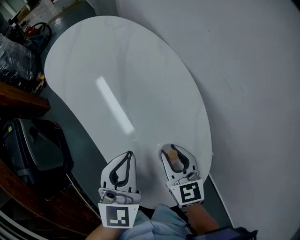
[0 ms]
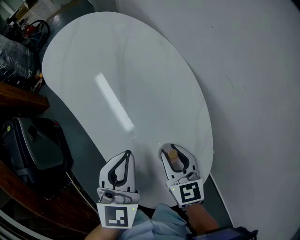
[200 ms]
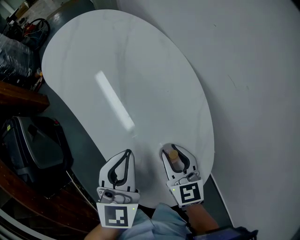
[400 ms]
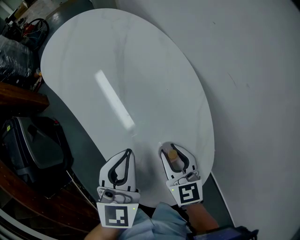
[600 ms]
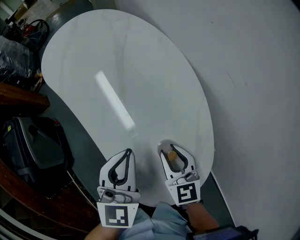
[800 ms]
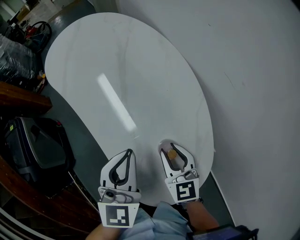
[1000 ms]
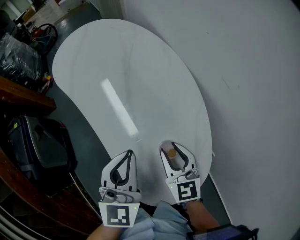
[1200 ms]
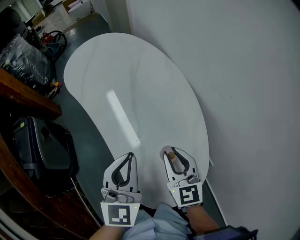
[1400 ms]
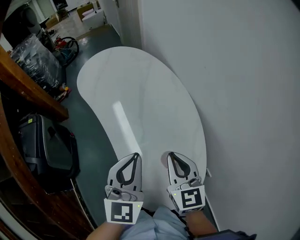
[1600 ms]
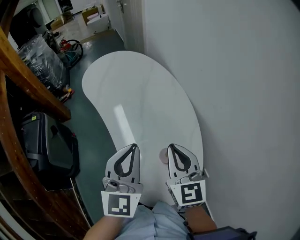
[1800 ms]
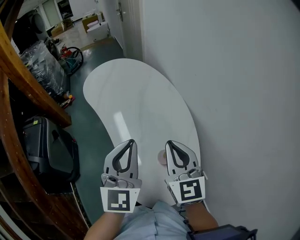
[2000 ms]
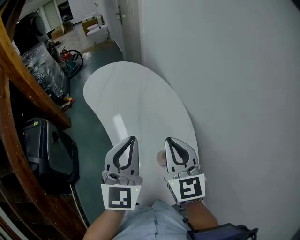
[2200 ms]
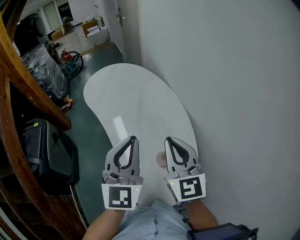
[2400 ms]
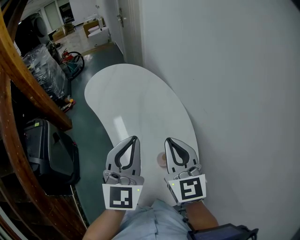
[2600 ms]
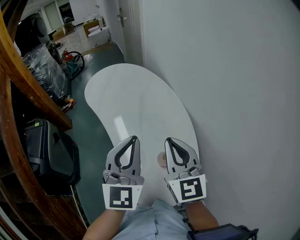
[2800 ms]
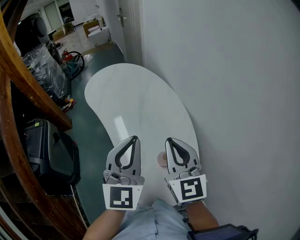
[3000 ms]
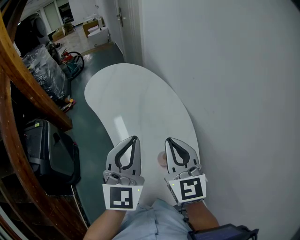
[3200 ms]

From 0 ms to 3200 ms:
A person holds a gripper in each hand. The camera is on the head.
From 0 ms to 1600 ms: The grippers both shift upward by some 10 cm. The right gripper closes.
From 1600 ms to 3200 ms: The two grippers go approximately 10 cm upward.

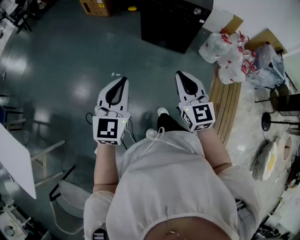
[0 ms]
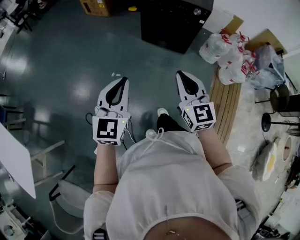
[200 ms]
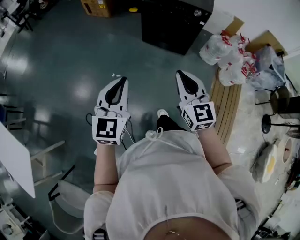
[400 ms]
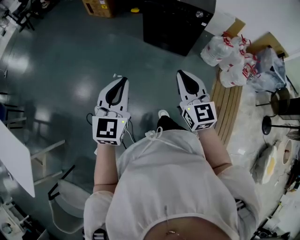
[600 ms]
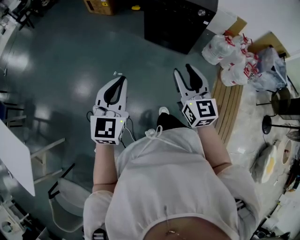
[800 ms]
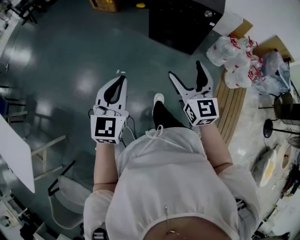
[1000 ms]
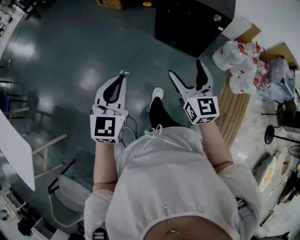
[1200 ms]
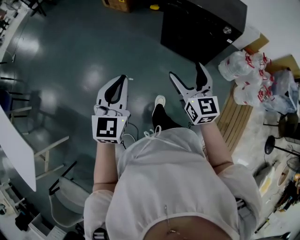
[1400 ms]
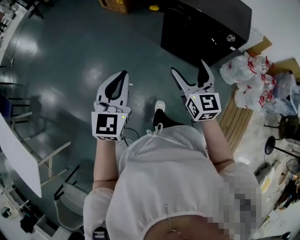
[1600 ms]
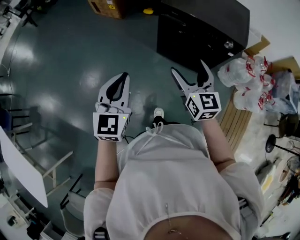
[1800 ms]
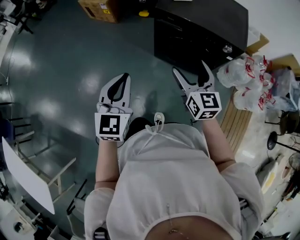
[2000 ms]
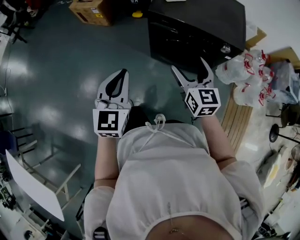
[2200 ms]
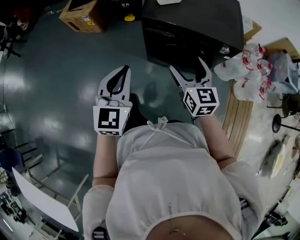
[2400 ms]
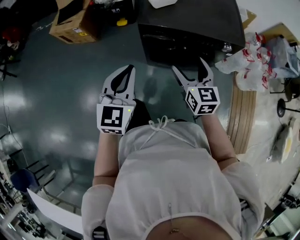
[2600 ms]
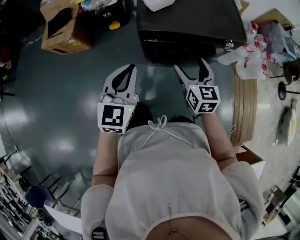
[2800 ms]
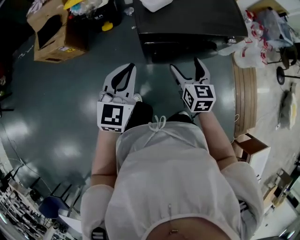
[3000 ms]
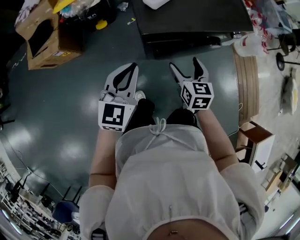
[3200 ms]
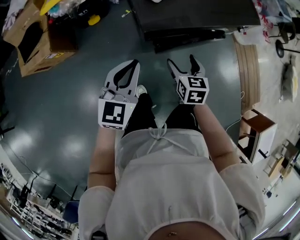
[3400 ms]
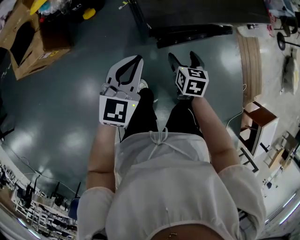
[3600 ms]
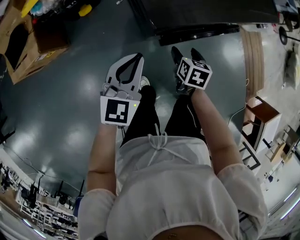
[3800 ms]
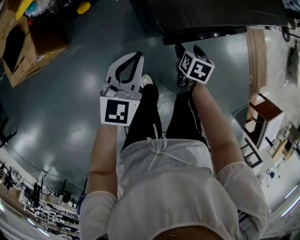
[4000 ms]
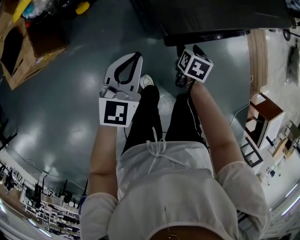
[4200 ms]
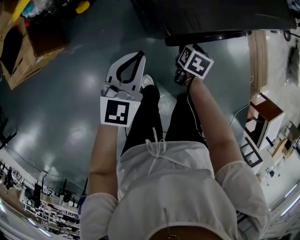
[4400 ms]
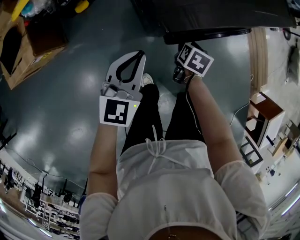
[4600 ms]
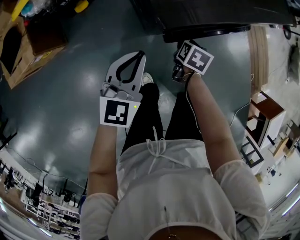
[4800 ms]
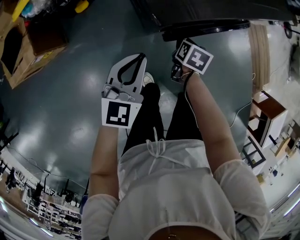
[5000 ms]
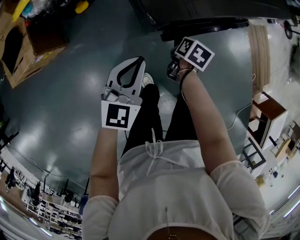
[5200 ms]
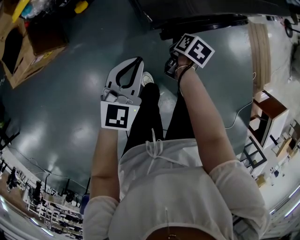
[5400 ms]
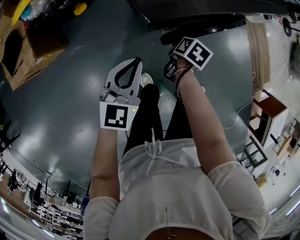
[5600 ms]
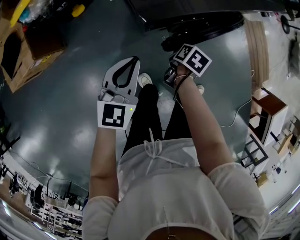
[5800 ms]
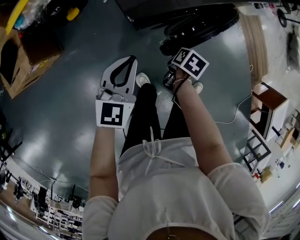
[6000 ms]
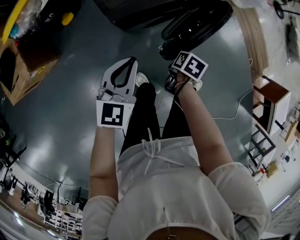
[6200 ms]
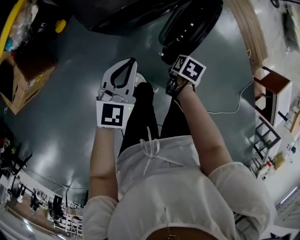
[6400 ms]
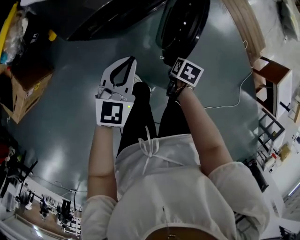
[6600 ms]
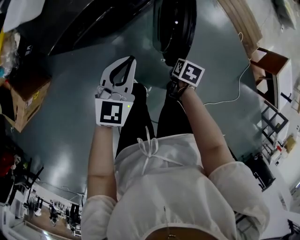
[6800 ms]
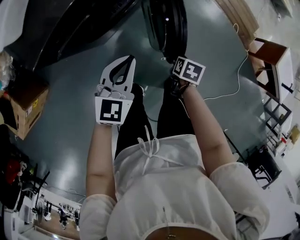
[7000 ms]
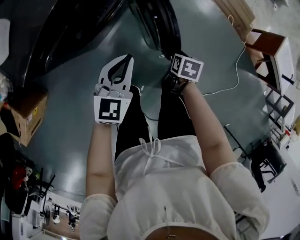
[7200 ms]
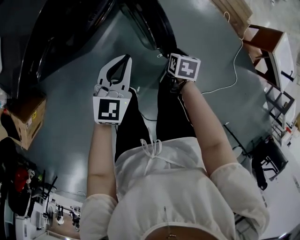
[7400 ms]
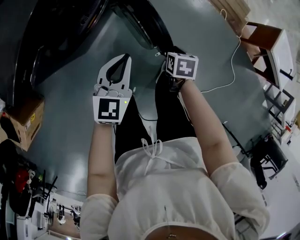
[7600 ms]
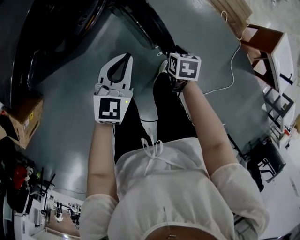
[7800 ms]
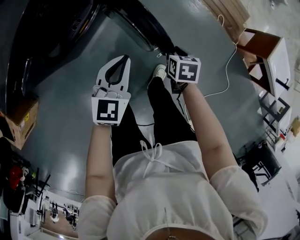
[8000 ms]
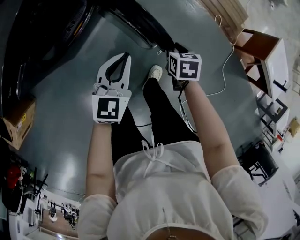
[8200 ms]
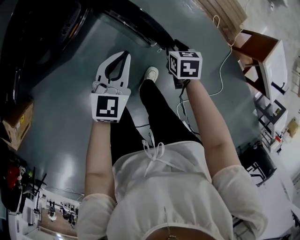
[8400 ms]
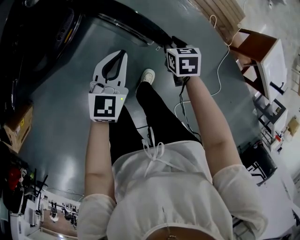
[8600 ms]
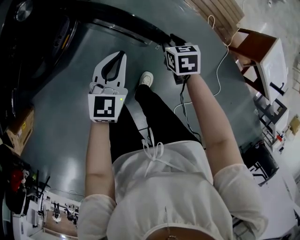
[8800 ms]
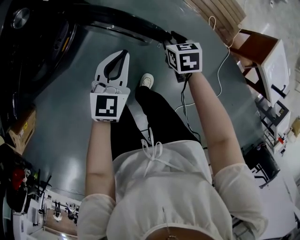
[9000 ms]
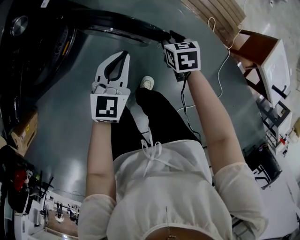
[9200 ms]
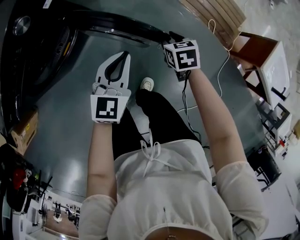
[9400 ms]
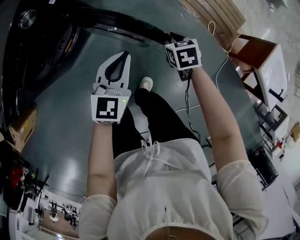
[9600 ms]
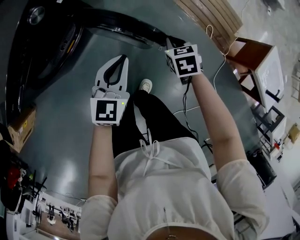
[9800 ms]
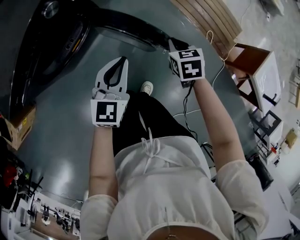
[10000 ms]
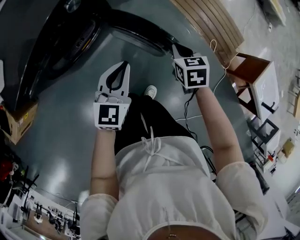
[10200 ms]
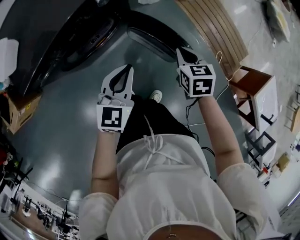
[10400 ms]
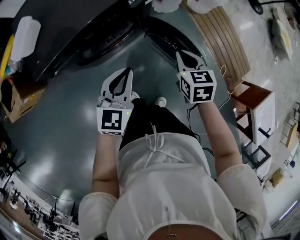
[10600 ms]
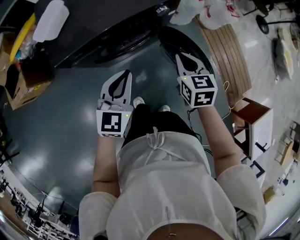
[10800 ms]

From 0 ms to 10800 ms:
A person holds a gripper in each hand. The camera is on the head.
From 0 ms to 1600 ms: Both grippers move forward, approximately 30 cm. The right gripper opens up.
From 1600 ms to 3000 ms: The left gripper ends up approximately 50 cm from where it was, and changes its angle by roughly 40 degrees; the right gripper moves about 40 cm, and changes its angle by some 40 degrees.
From 3000 ms to 4600 ms: The grippers both shift downward by roughly 30 cm. The right gripper tips its fingers downward by some 40 degrees, and closes up; the left gripper turns by roughly 20 degrees.
From 4600 ms to 6200 ms: The right gripper goes about 15 cm to the right and backward, and rotates roughly 20 degrees. The left gripper heads to the right, covering roughly 10 cm.
From 6200 ms to 7800 ms: The two grippers travel together, some 40 cm. The left gripper rotates some 20 degrees.
From 7800 ms to 9200 ms: The left gripper goes some 25 cm to the right and forward. The right gripper heads forward and to the right, covering roughly 25 cm.
From 9200 ms to 10800 ms: Both grippers move to the left and upward, roughly 40 cm. The right gripper swivels roughly 30 degrees; the left gripper rotates about 30 degrees.

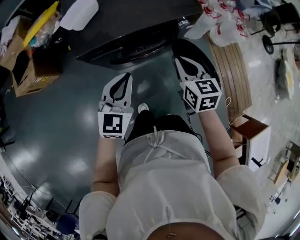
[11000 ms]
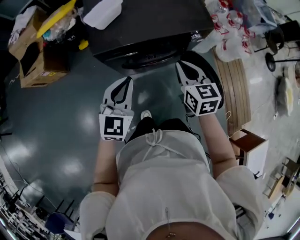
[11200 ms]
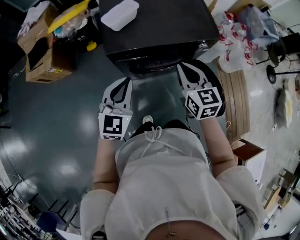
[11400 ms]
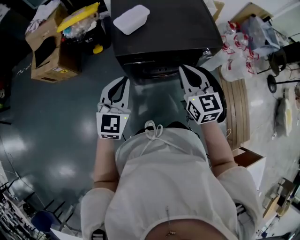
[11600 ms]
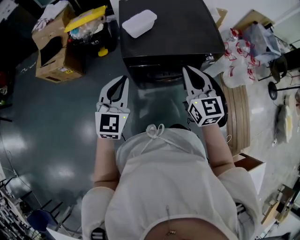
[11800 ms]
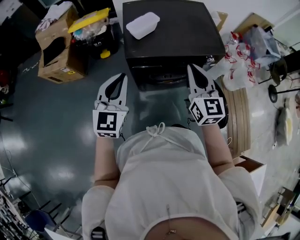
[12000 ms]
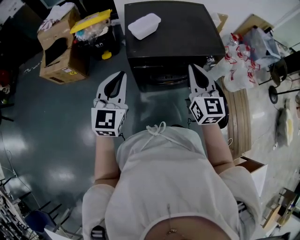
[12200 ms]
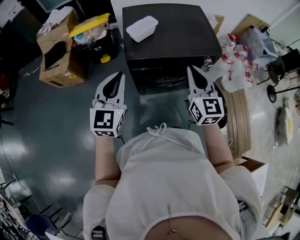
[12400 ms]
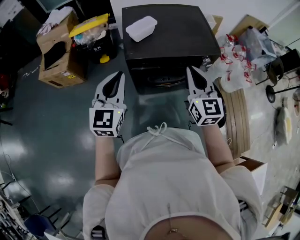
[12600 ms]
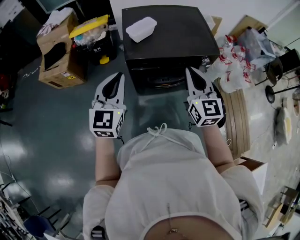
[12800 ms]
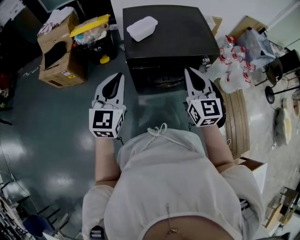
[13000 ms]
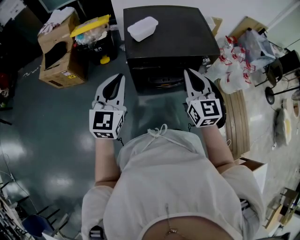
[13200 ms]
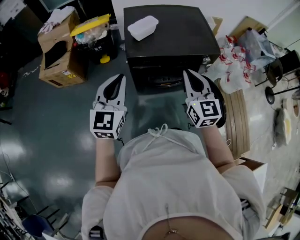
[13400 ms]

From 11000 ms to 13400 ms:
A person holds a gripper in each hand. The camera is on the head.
From 11000 ms to 12200 ms: The right gripper is displaced upward and to the left by roughly 25 cm, and swivels about 30 degrees; the left gripper goes approximately 25 cm to the left and upward.
From 12200 ms to 13400 ms: The grippers move only a little.

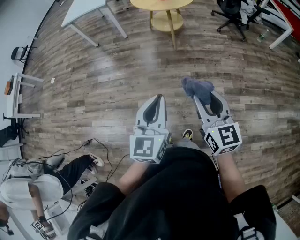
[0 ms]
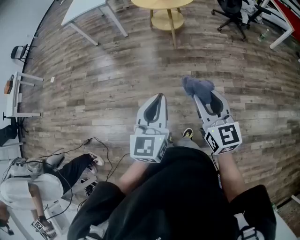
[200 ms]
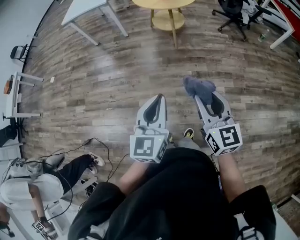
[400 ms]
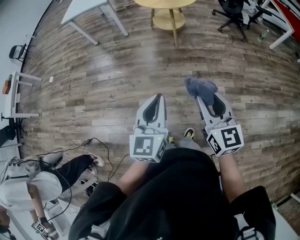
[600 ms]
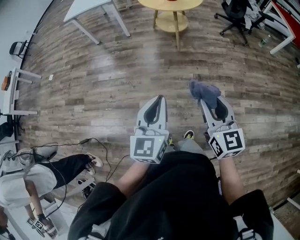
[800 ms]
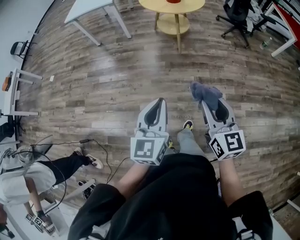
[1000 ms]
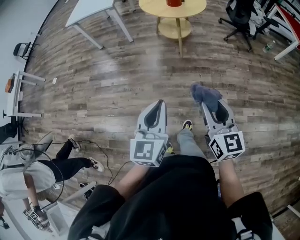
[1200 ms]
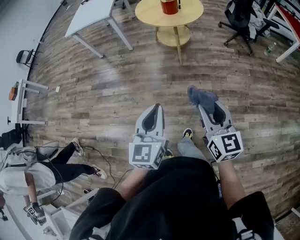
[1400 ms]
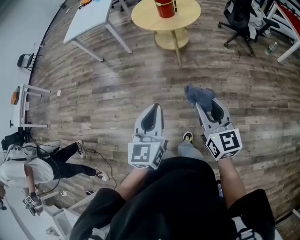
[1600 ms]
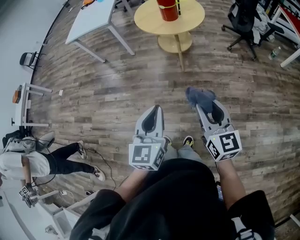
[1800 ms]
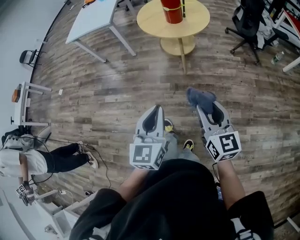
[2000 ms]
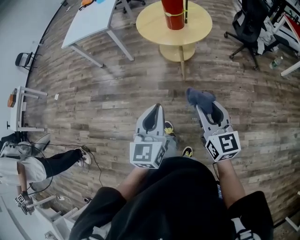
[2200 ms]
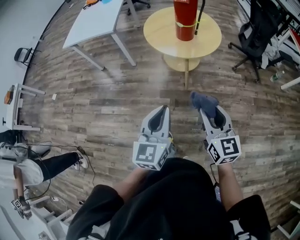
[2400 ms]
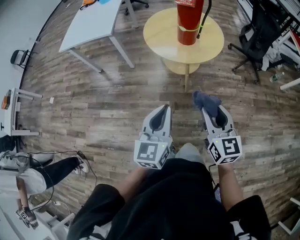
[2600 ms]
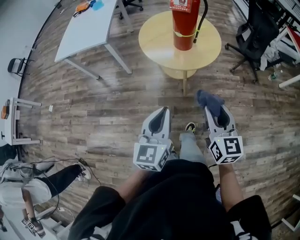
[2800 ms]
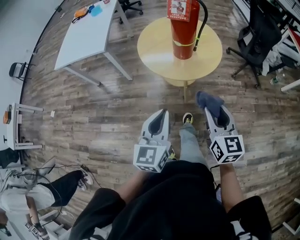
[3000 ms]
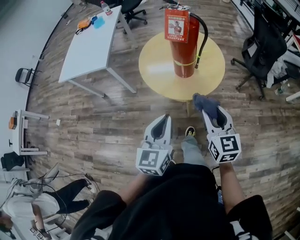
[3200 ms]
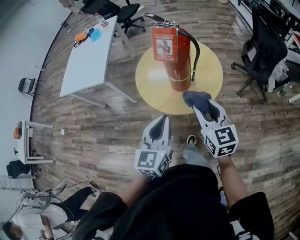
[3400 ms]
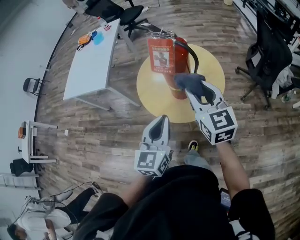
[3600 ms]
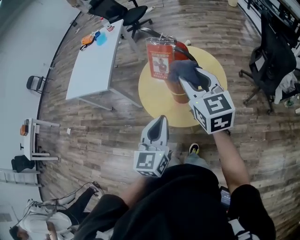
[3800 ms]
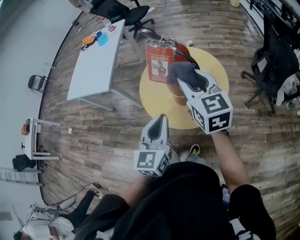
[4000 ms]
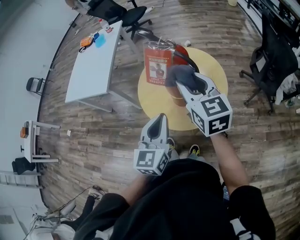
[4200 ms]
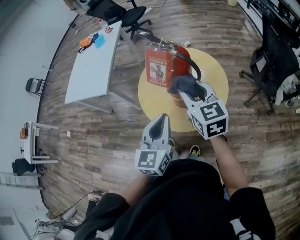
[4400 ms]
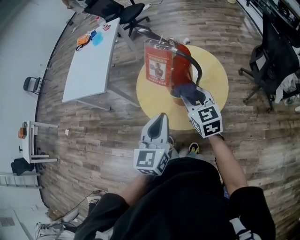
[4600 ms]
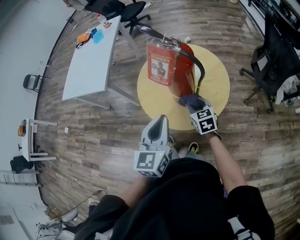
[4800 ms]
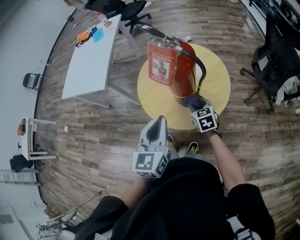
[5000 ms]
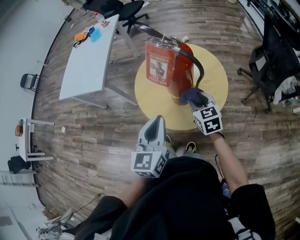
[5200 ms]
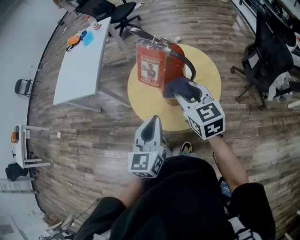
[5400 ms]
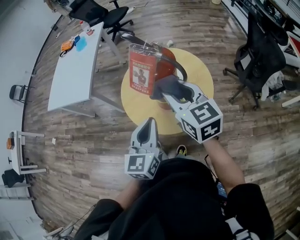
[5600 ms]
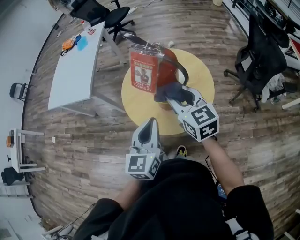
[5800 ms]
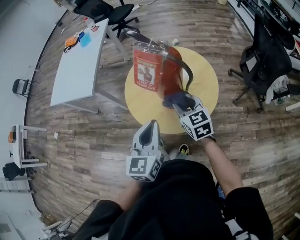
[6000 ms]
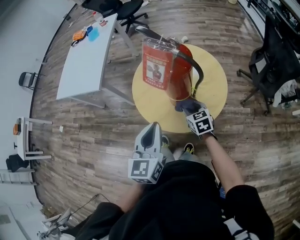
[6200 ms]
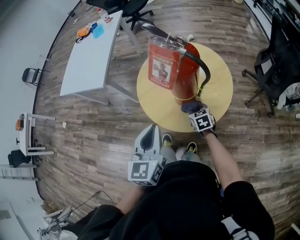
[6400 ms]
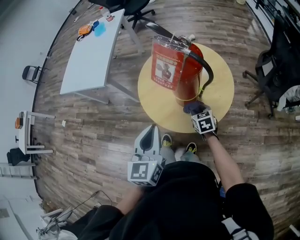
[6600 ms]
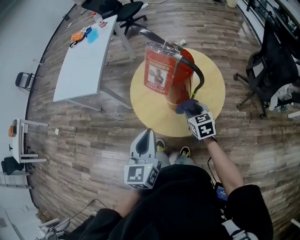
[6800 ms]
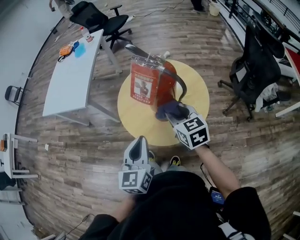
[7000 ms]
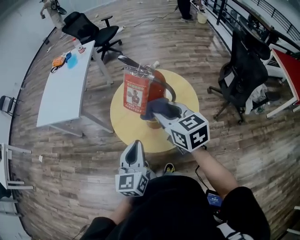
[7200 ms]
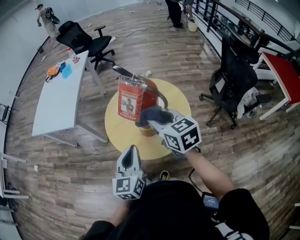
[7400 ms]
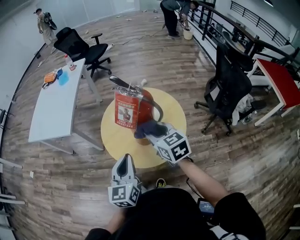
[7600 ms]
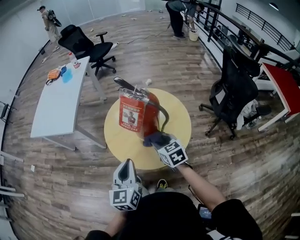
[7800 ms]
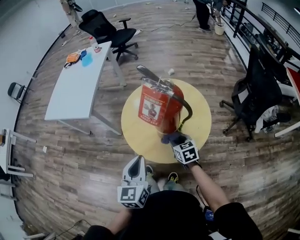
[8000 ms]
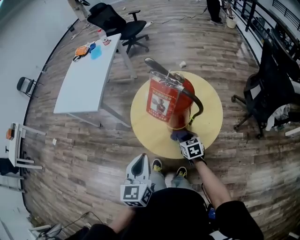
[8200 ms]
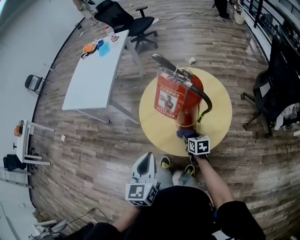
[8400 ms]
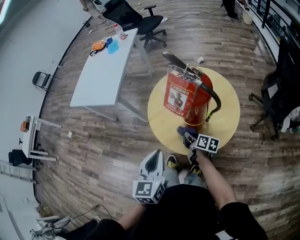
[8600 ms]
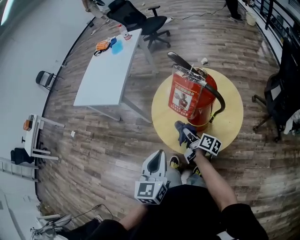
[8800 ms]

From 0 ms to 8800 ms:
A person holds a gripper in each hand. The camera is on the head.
From 0 ms to 1400 ms: Both grippers move forward, approximately 15 cm.
From 1400 ms to 3000 ms: The two grippers travel together, forward, approximately 50 cm.
From 3000 ms to 4400 ms: Both grippers travel together forward, some 30 cm.
From 4400 ms to 5800 ms: The right gripper goes up and down, some 25 cm each way, reversing 2 times.
From 5800 ms to 7400 ms: The right gripper moves approximately 30 cm downward and comes back.
From 7400 ms to 8800 ms: The left gripper goes about 5 cm to the left, while the right gripper goes about 25 cm downward, and rotates around the line of its fingers by some 70 degrees, clockwise from behind.
